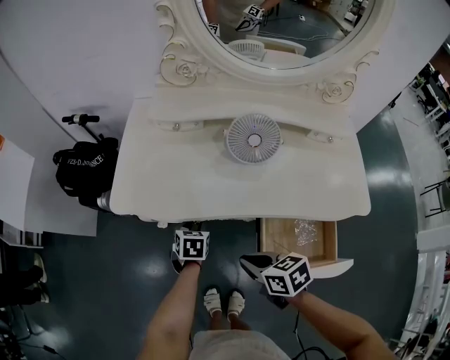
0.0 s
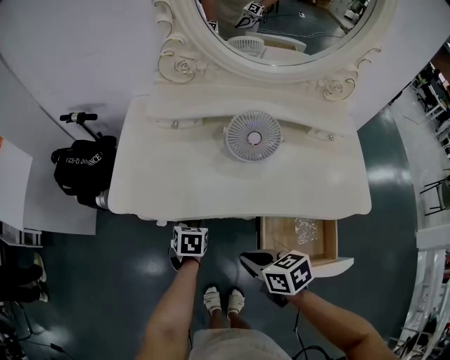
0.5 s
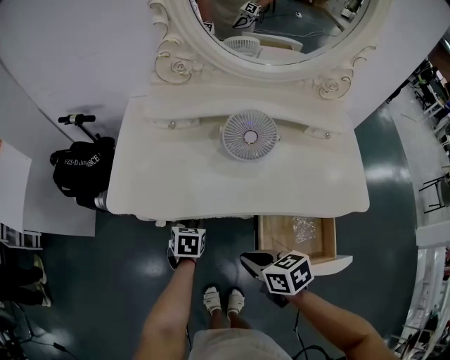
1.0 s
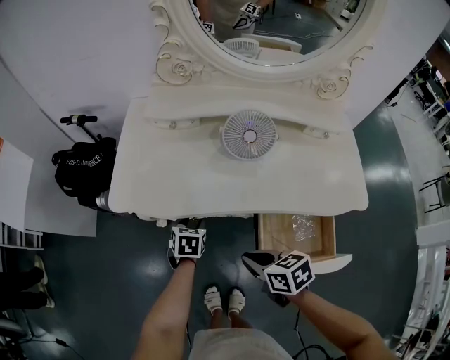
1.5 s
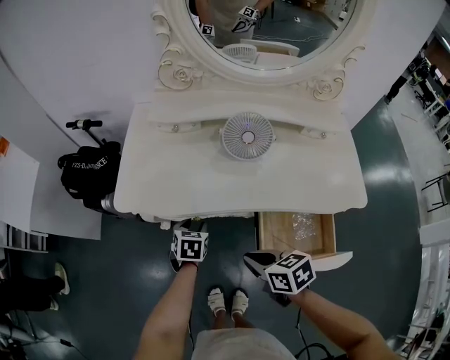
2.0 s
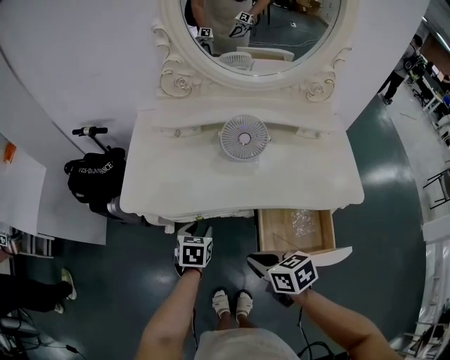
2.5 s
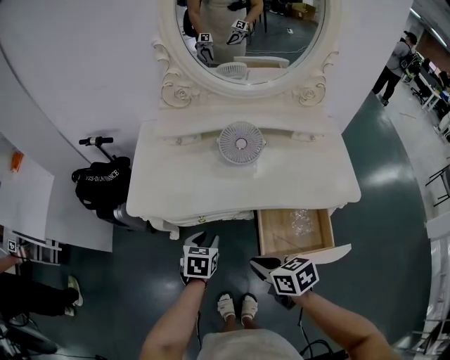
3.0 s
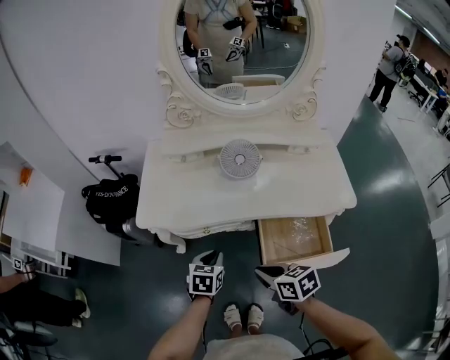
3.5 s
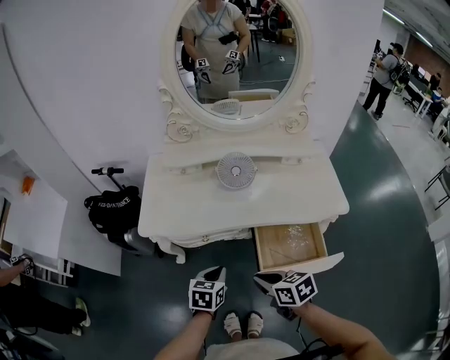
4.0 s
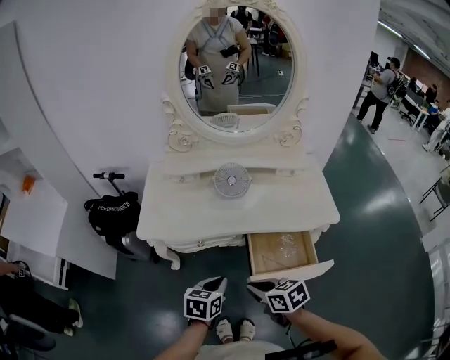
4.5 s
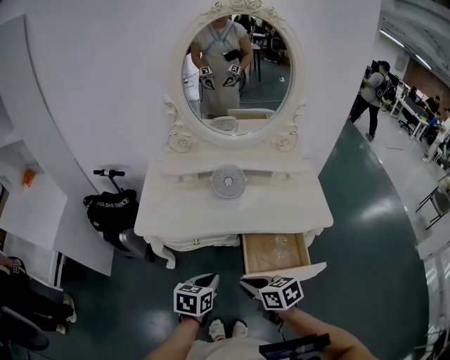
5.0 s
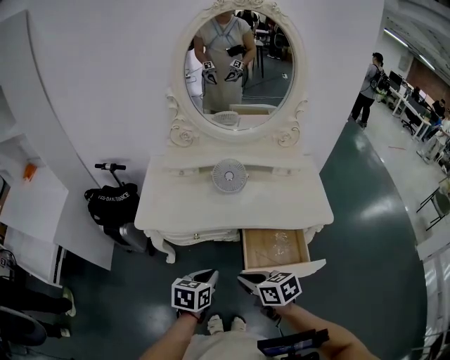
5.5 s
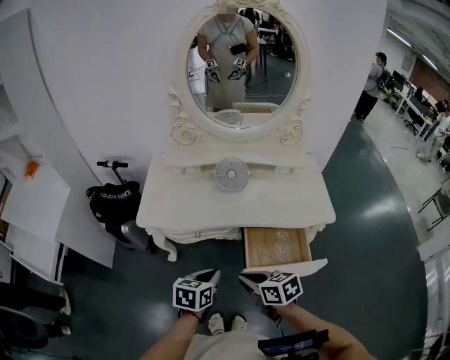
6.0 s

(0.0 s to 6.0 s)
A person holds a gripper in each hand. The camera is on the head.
0.0 s - 2.0 s: The grippers stay close to where they were, moving slightly.
2.0 s - 4.0 s: The right gripper travels backward and upward by roughly 10 cm; the left gripper goes roughly 20 cm backward and upward, and closes up.
4.0 s - 6.0 s: The right gripper shifts by approximately 5 cm. The left gripper heads upward and backward, covering roughly 10 cm.

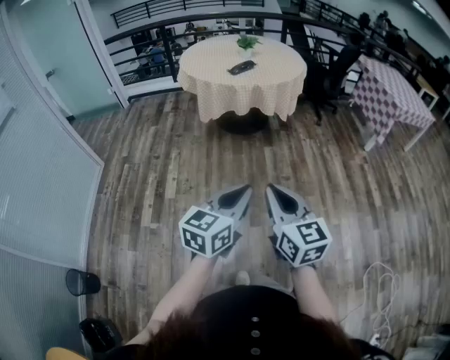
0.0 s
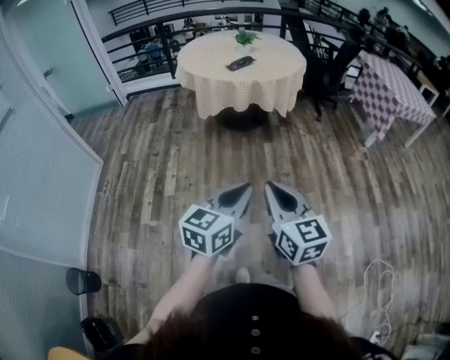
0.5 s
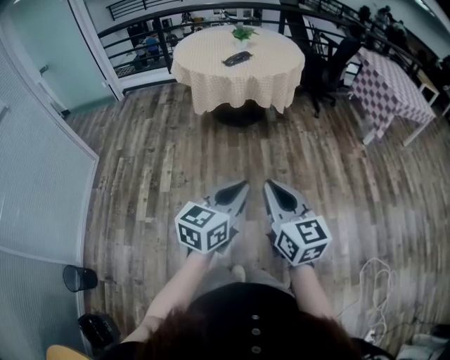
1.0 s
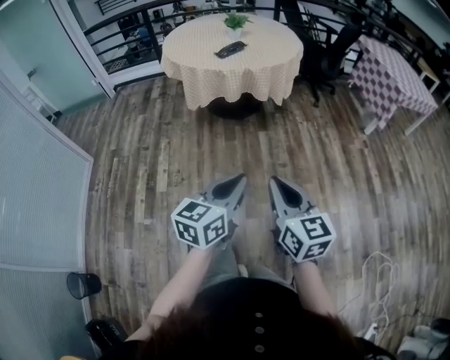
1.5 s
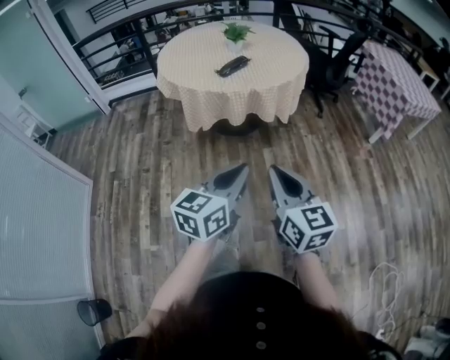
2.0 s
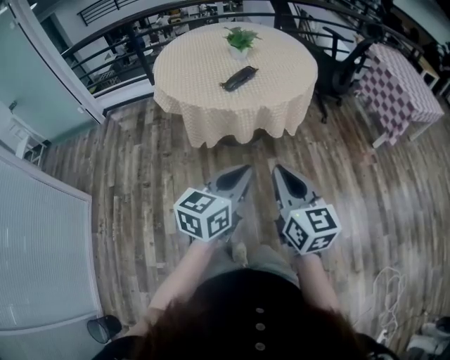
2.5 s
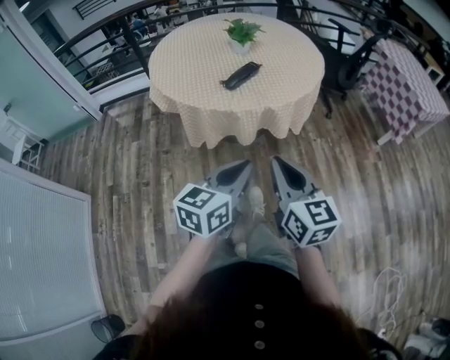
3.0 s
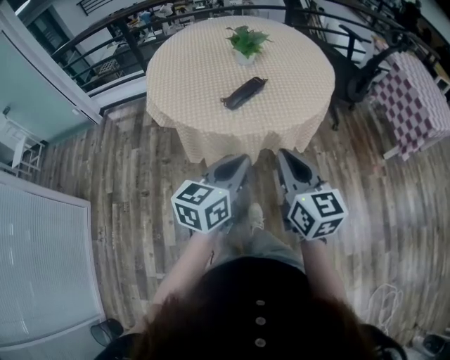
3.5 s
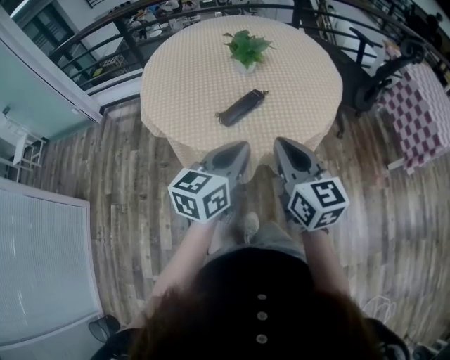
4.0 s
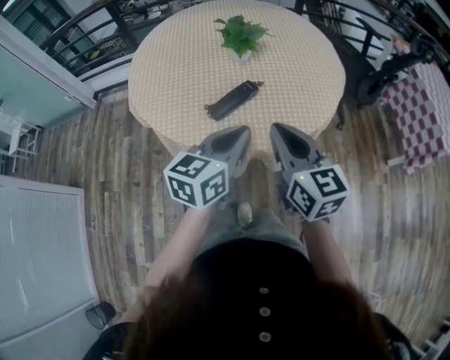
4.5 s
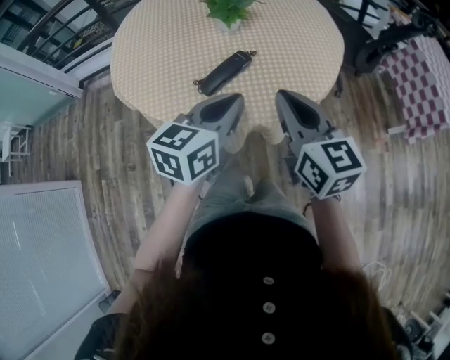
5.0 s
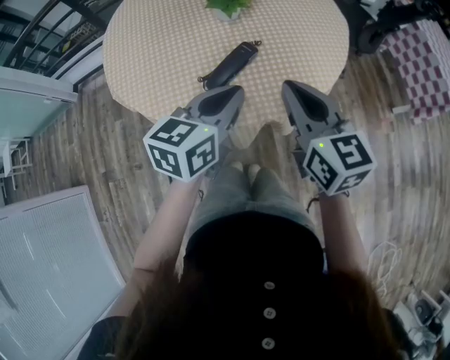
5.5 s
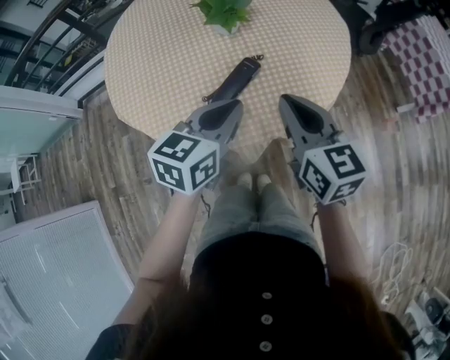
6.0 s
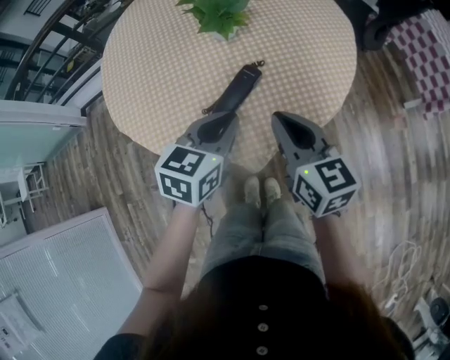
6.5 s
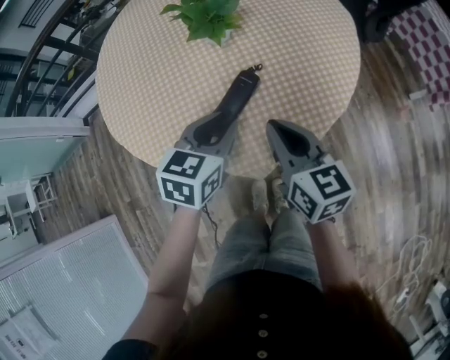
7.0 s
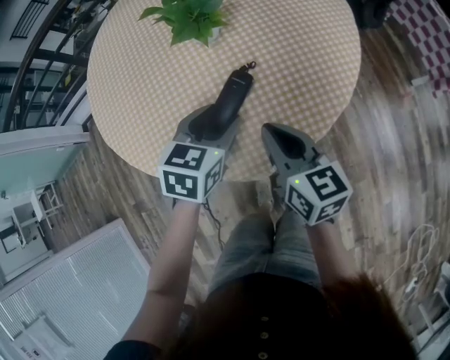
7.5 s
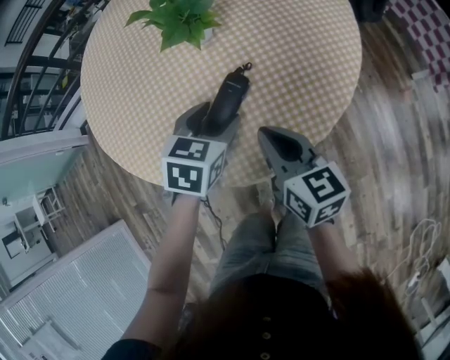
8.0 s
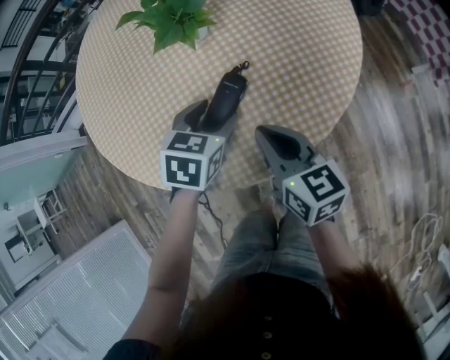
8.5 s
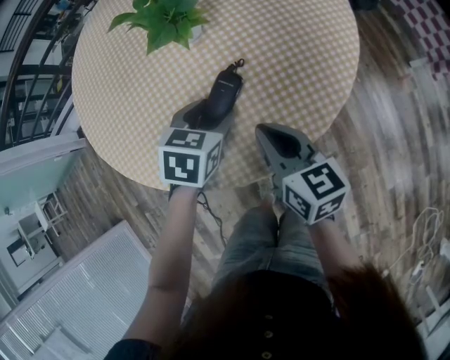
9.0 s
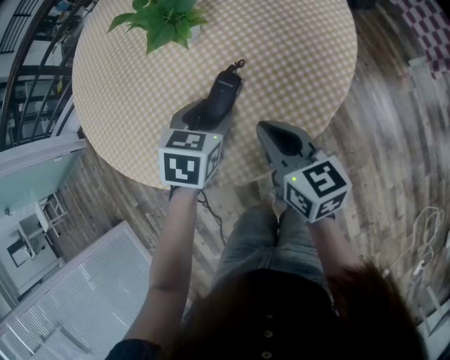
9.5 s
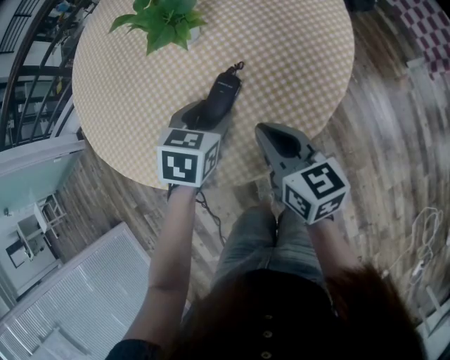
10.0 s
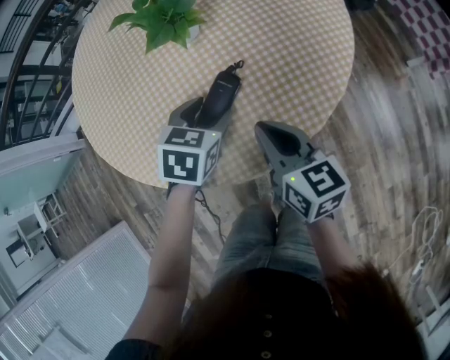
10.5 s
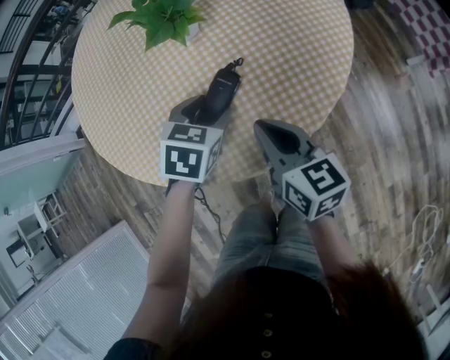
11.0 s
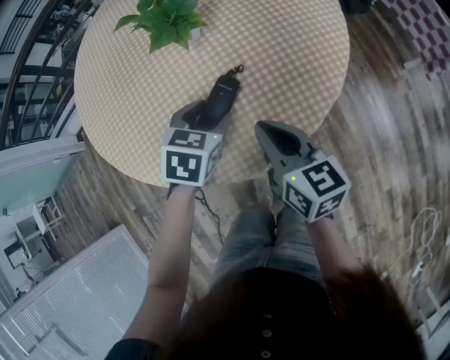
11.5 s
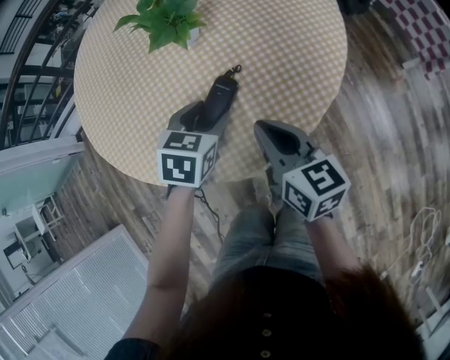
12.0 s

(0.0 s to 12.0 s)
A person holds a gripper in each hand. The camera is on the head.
0.0 s - 2.0 s: The two grippers go approximately 25 cm forward.
2.0 s - 4.0 s: The pair of grippers is taken forward, about 50 cm.
4.0 s - 6.0 s: Both grippers move forward, approximately 15 cm.
6.0 s - 8.0 s: The left gripper is displaced downward and forward by about 15 cm, changes its angle by about 30 degrees, and opens its fingers. The right gripper moves downward, about 10 cm.
8.0 s - 12.0 s: The grippers move only a little.

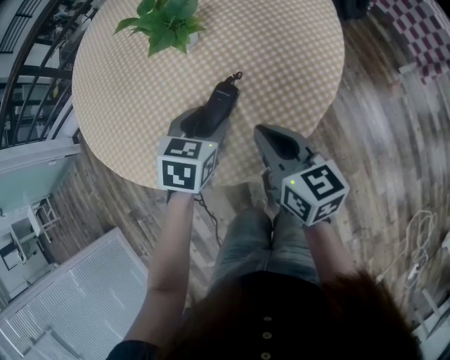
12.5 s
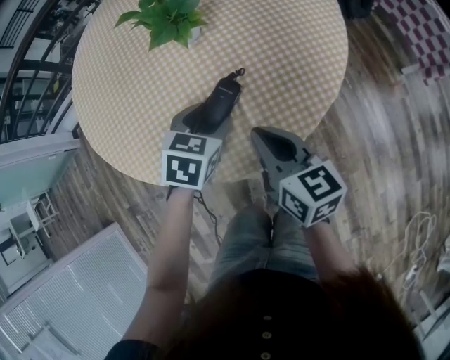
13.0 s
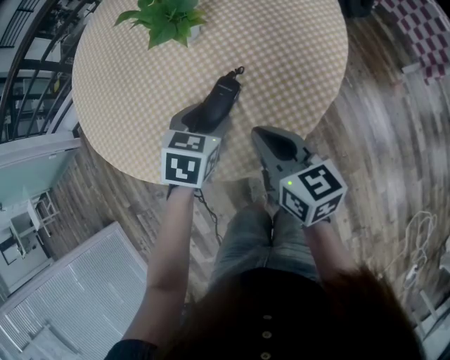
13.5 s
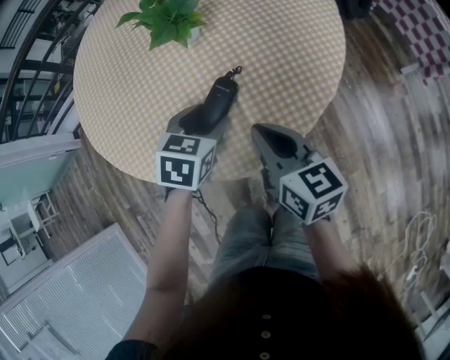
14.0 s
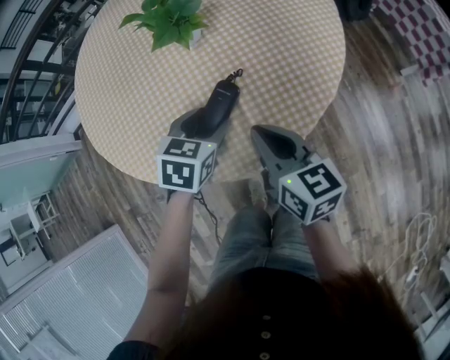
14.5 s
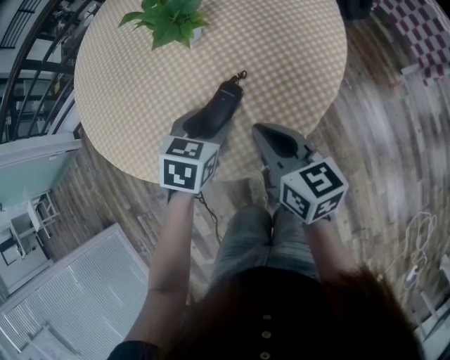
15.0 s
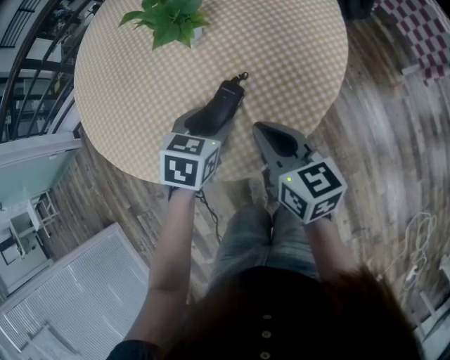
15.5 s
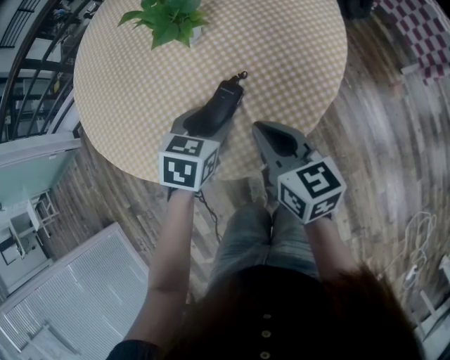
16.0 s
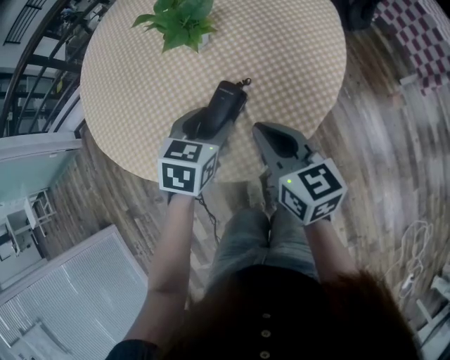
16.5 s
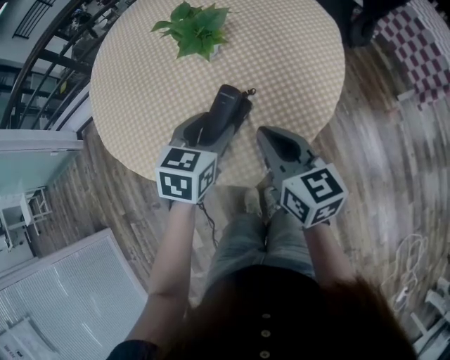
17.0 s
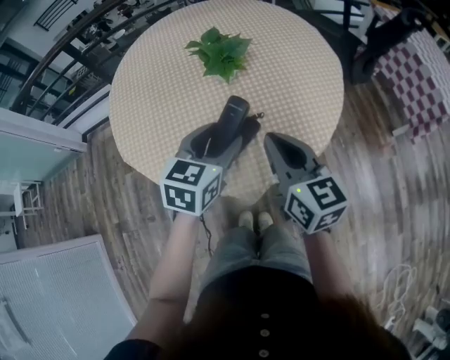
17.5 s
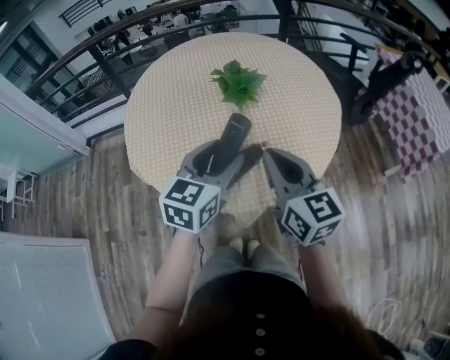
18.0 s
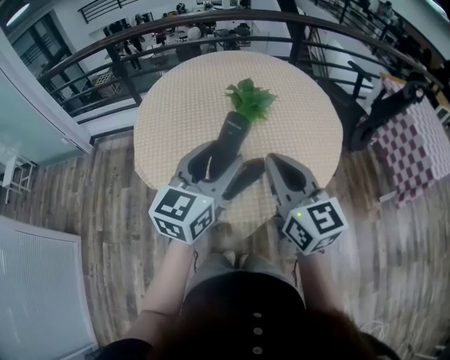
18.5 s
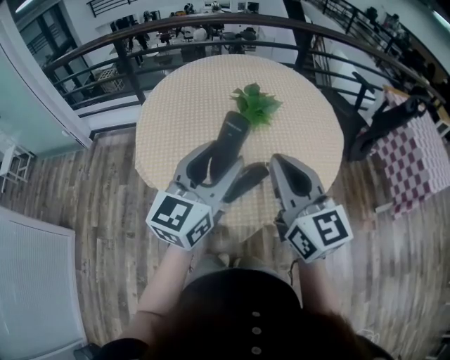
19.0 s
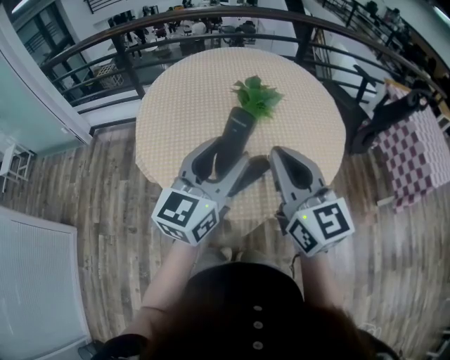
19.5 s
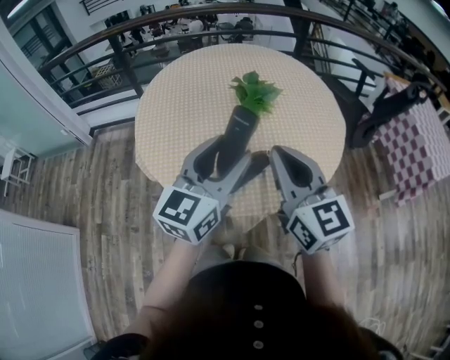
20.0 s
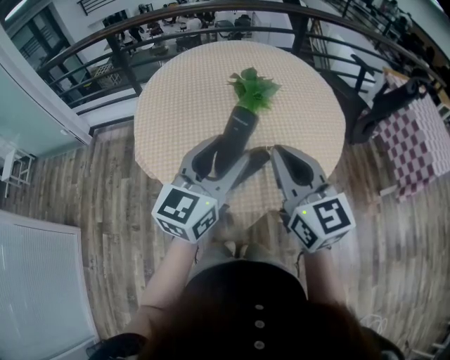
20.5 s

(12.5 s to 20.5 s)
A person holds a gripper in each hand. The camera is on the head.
12.5 s - 16.5 s: The grippers move only a little.
16.5 s - 18.5 s: The two grippers go some 20 cm upward. The right gripper rotates some 30 degrees; the left gripper tips its fingers upward by approximately 40 degrees.
18.5 s - 20.5 s: The grippers stay close to where they were, moving slightly.

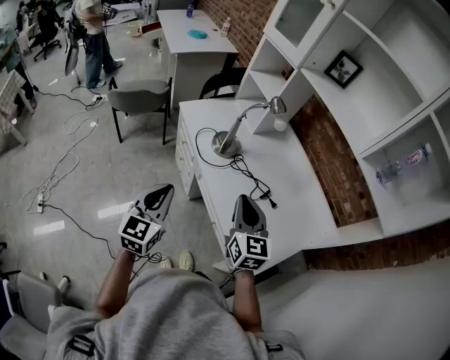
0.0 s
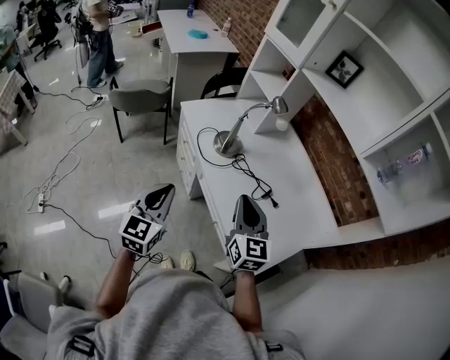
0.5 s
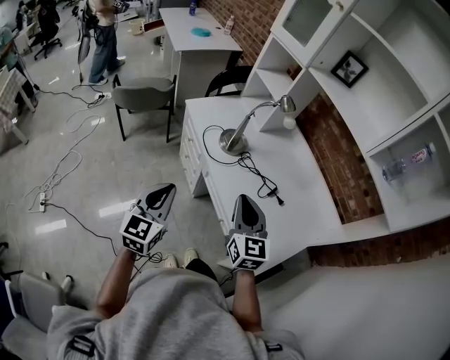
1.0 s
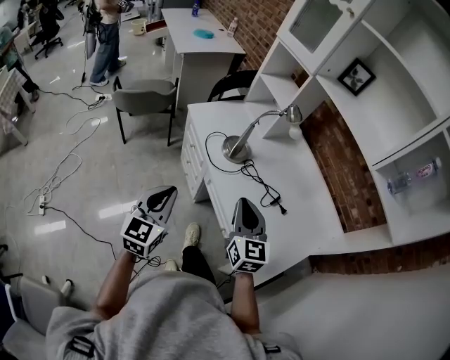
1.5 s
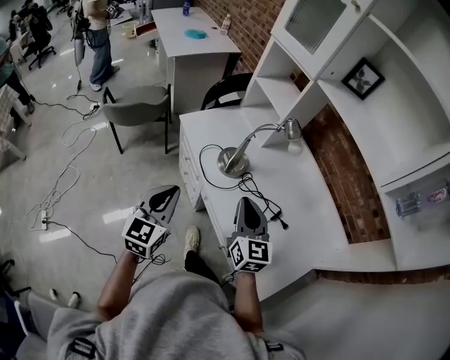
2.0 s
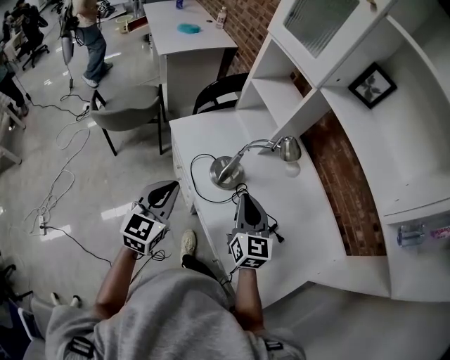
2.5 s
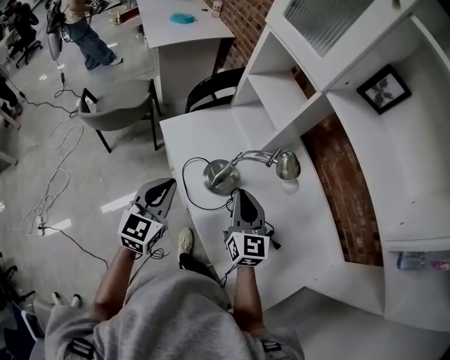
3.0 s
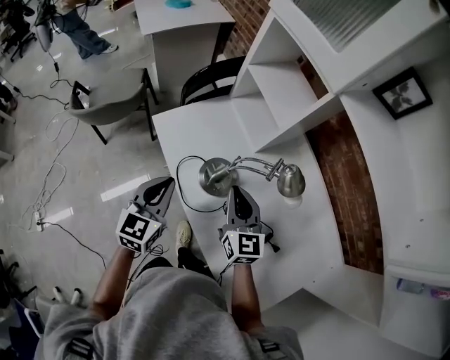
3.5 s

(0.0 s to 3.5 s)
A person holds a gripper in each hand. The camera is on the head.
0.0 s - 2.0 s: The grippers both shift forward by approximately 10 cm.
2.0 s - 3.5 s: The grippers both shift forward by roughly 20 cm.
